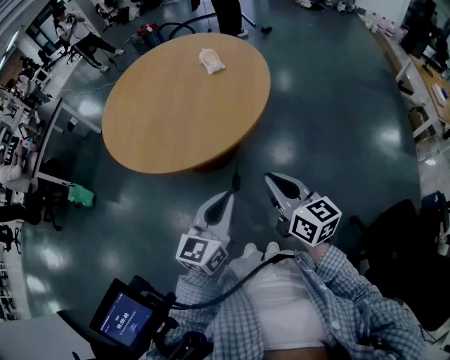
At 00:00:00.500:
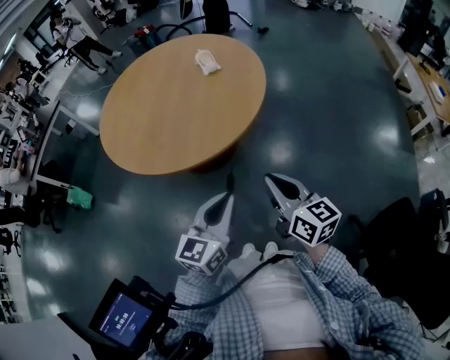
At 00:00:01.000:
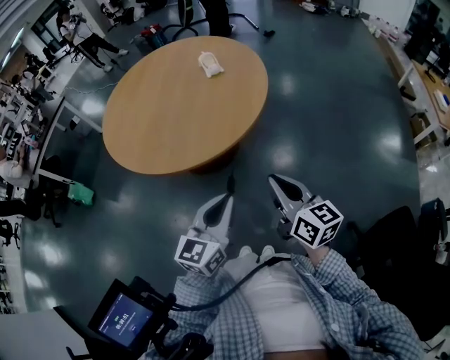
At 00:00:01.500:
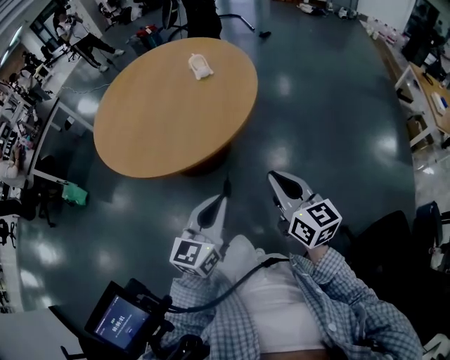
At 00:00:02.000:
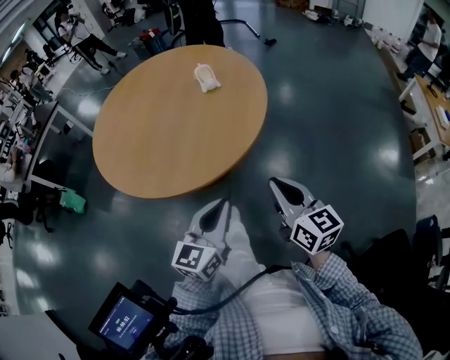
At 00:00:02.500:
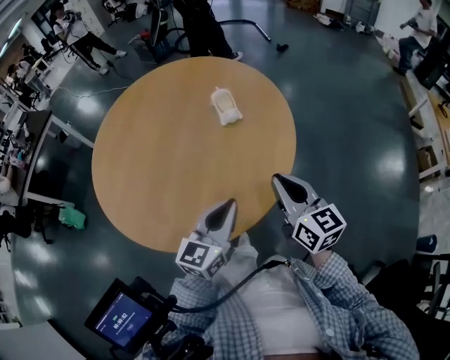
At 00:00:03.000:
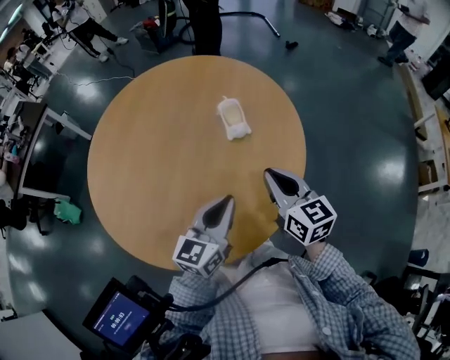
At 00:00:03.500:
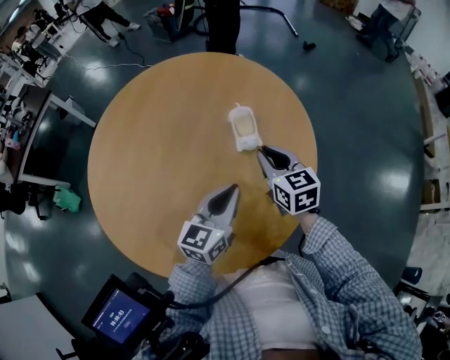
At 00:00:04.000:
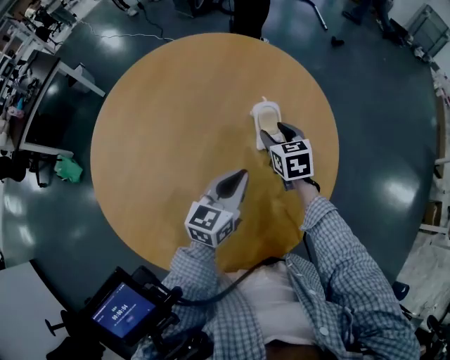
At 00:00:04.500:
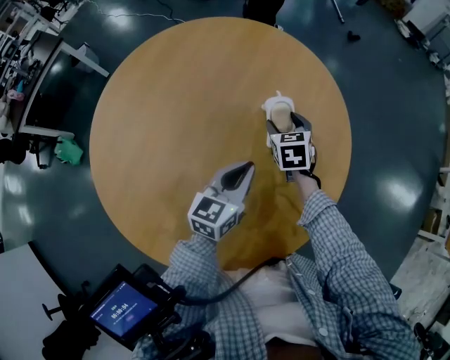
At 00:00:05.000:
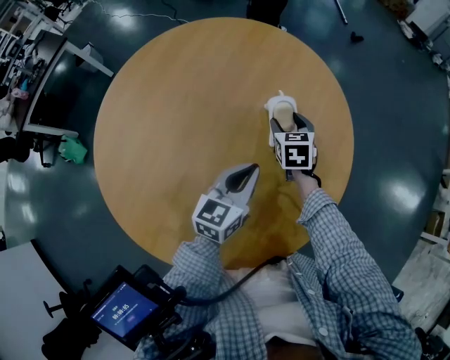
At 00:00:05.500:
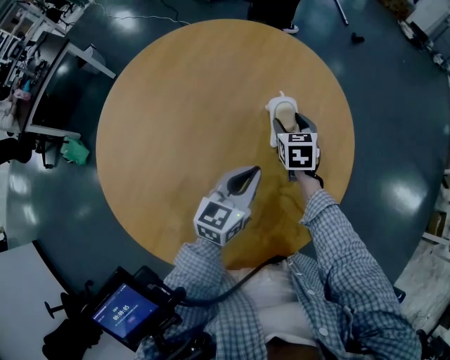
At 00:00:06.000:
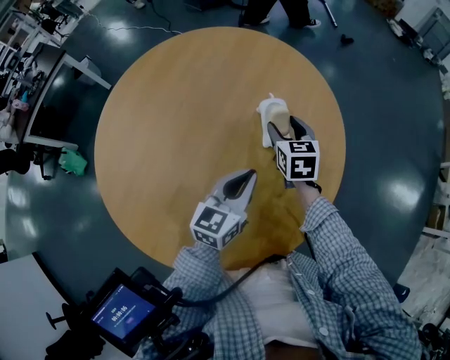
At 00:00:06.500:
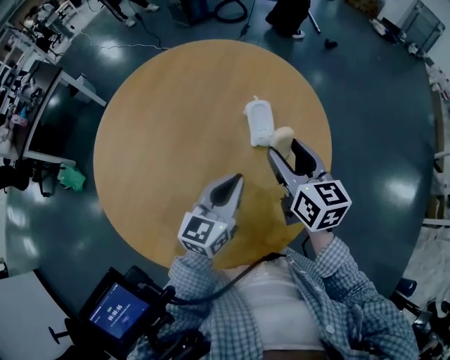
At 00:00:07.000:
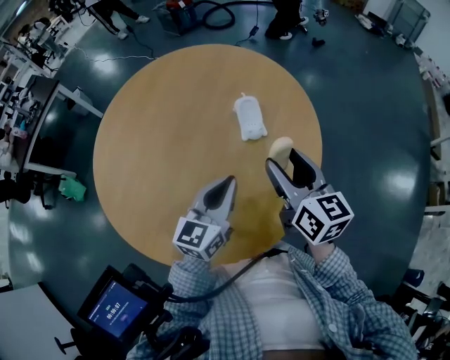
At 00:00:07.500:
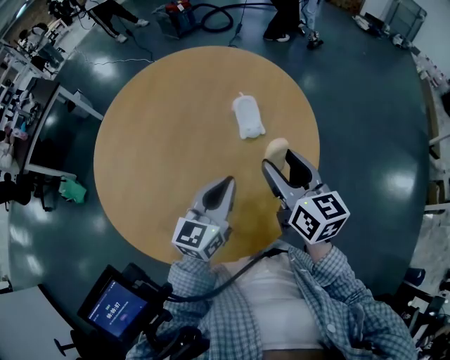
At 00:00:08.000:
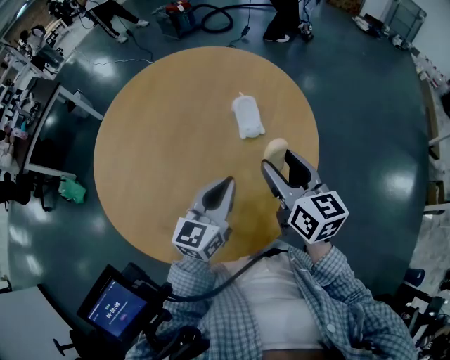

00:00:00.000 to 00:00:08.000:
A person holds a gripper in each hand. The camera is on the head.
00:00:00.000 to 00:00:02.000: The left gripper travels forward by some 10 cm. Meanwhile the right gripper shifts approximately 10 cm forward and to the right.
00:00:02.000 to 00:00:04.000: The pair of grippers is taken forward, about 50 cm. The right gripper points its fingers approximately 30 degrees further downward, and opens up.
00:00:04.000 to 00:00:06.000: The grippers move only a little.
00:00:06.000 to 00:00:08.000: The left gripper moves backward and upward, approximately 10 cm; the right gripper is displaced backward and upward by about 25 cm, and swivels roughly 30 degrees.

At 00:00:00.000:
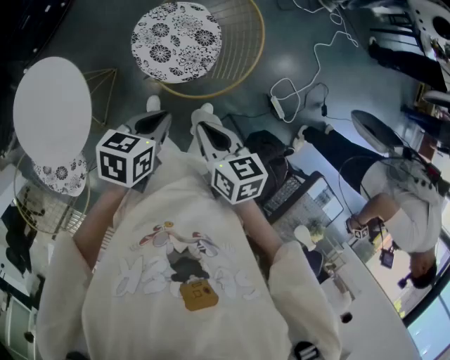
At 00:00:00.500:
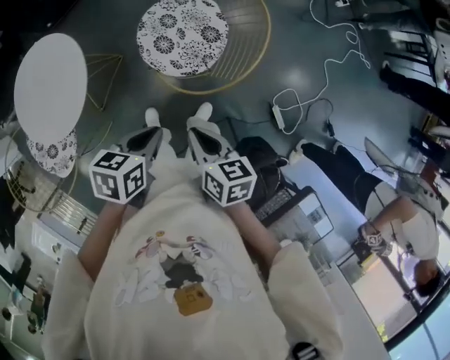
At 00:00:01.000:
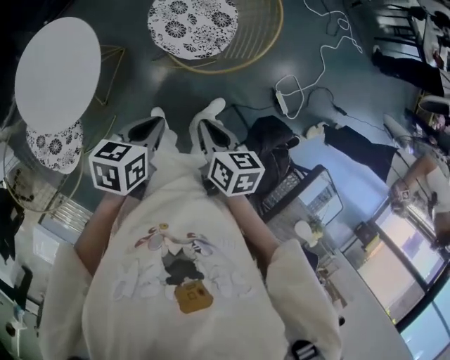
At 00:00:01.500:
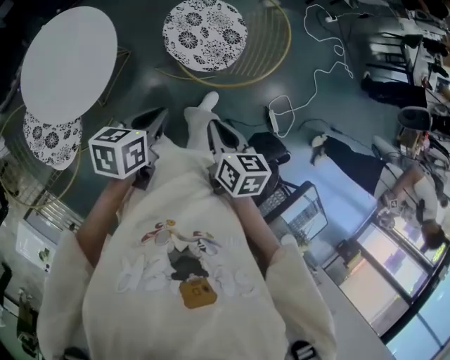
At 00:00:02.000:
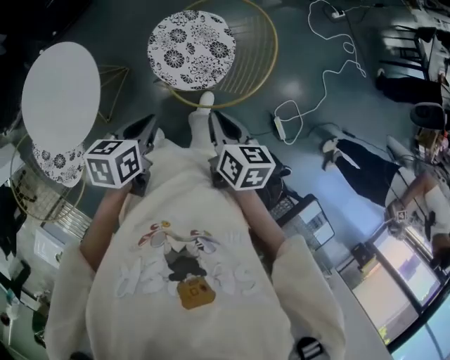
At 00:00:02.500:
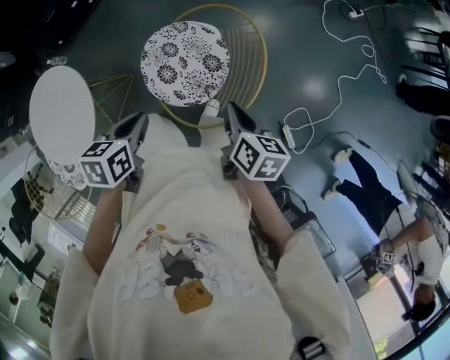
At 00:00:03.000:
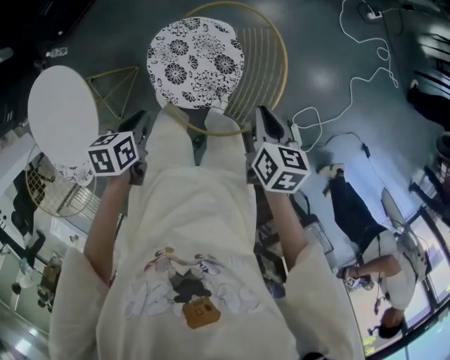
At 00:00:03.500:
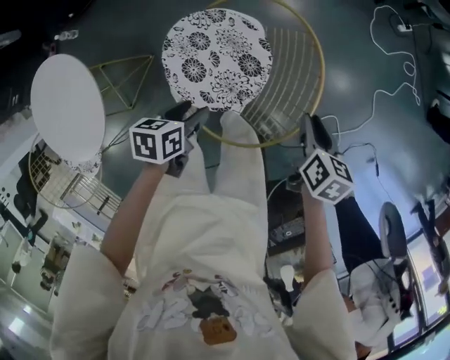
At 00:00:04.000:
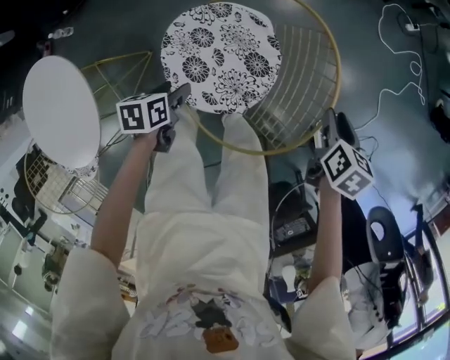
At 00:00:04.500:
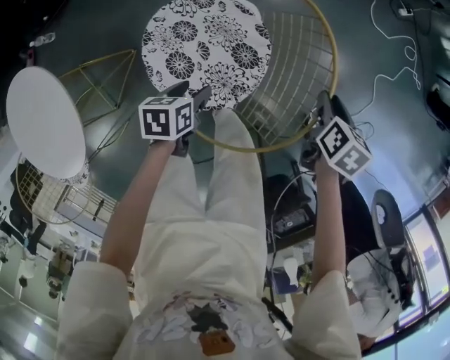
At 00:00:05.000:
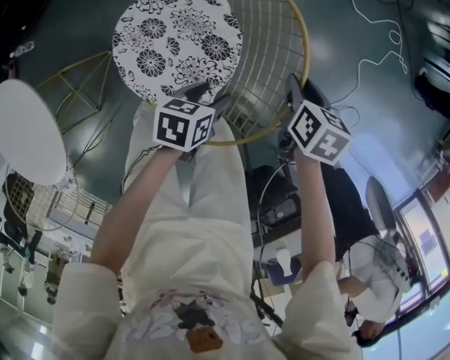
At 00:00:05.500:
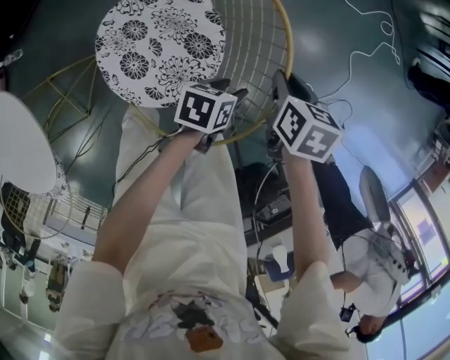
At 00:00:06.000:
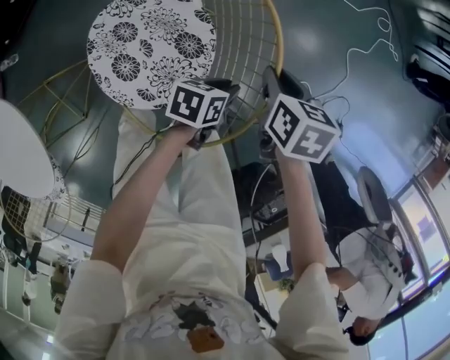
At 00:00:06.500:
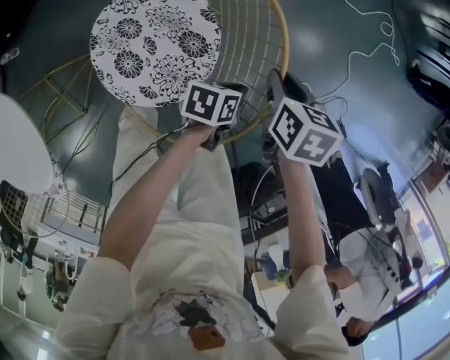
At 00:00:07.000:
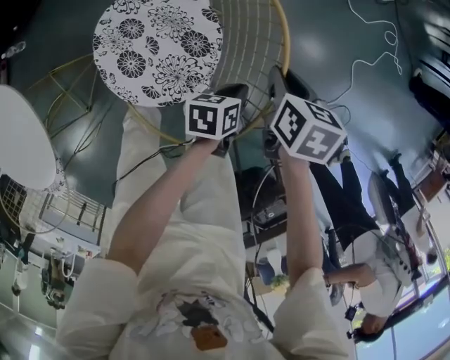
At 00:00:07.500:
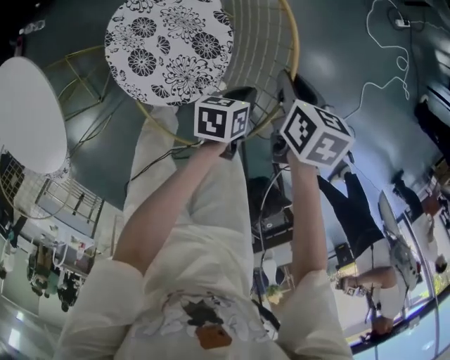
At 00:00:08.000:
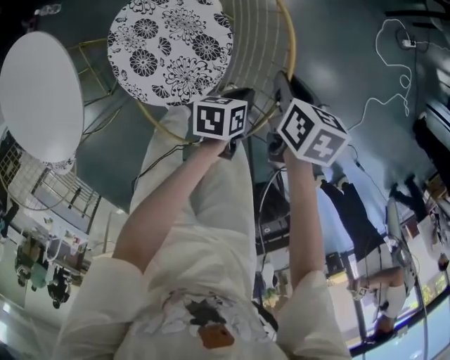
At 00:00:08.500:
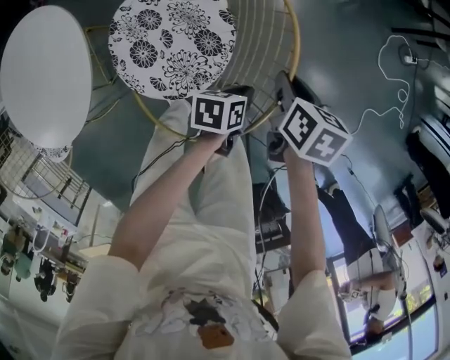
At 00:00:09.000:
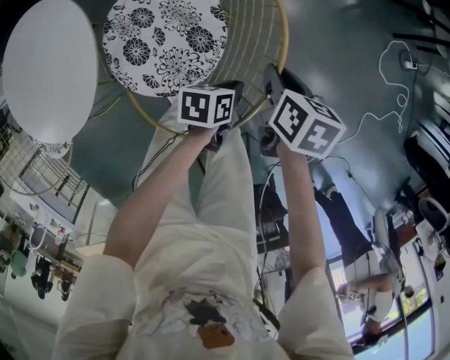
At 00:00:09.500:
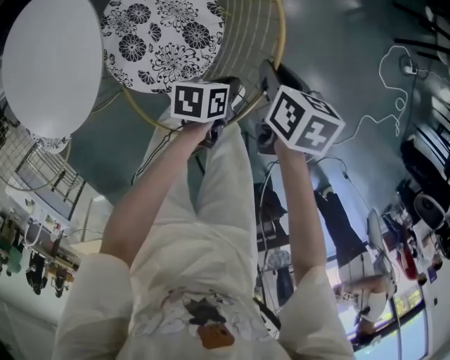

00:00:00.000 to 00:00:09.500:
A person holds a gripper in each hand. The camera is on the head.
00:00:00.000 to 00:00:02.000: The right gripper travels backward and back again, some 15 cm each way; the left gripper moves about 15 cm backward and comes back.
00:00:02.000 to 00:00:04.000: The left gripper goes about 35 cm downward and forward, and opens its fingers; the right gripper goes roughly 40 cm forward, downward and to the right, swivels about 20 degrees, and opens up.
00:00:04.000 to 00:00:05.500: The left gripper moves to the right and forward, approximately 30 cm, and swivels some 30 degrees.
00:00:05.500 to 00:00:07.500: The left gripper closes.
00:00:07.500 to 00:00:09.500: The grippers stay close to where they were, moving slightly.

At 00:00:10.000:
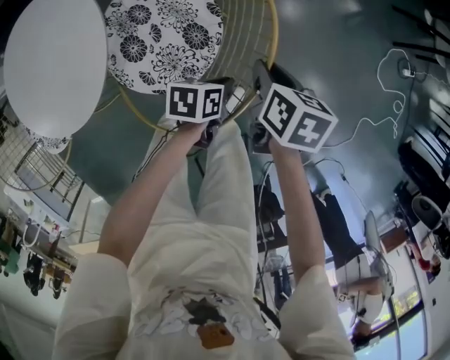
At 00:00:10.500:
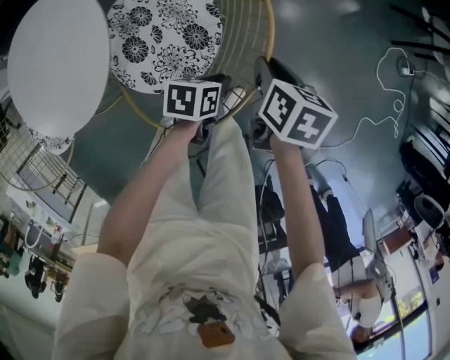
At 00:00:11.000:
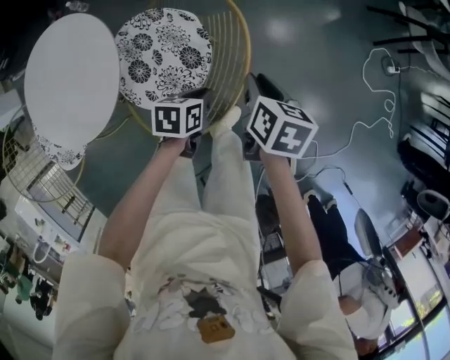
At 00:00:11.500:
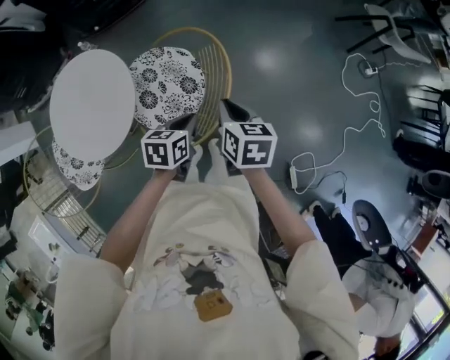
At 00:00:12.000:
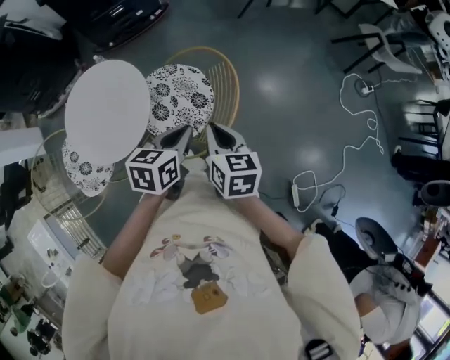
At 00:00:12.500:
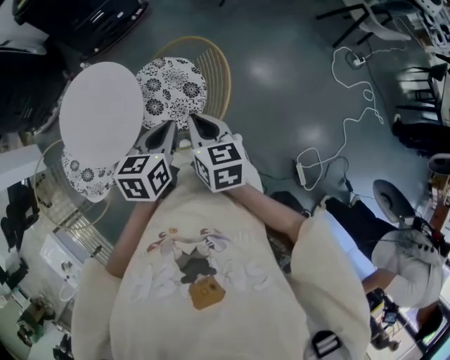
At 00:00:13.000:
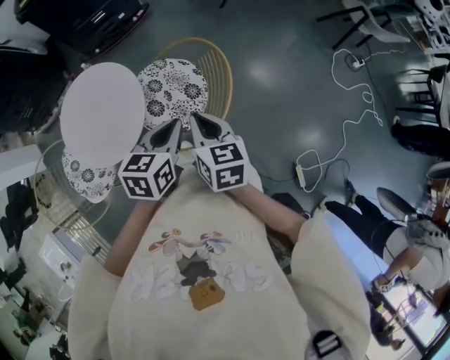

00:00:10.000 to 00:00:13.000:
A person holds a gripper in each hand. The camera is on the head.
00:00:10.000 to 00:00:11.500: The right gripper travels upward and backward by some 20 cm; the left gripper heads upward, covering some 25 cm, and rotates some 20 degrees.
00:00:11.500 to 00:00:13.000: The left gripper goes approximately 15 cm upward and backward. The right gripper travels backward, to the left and upward by about 15 cm.

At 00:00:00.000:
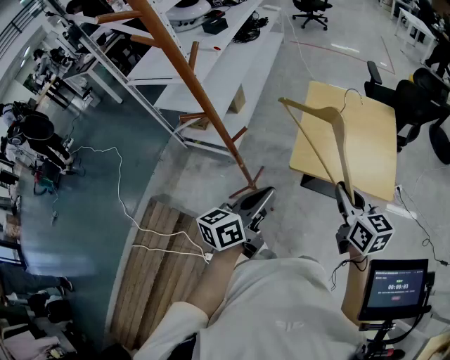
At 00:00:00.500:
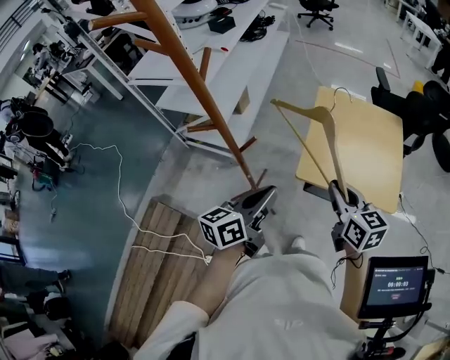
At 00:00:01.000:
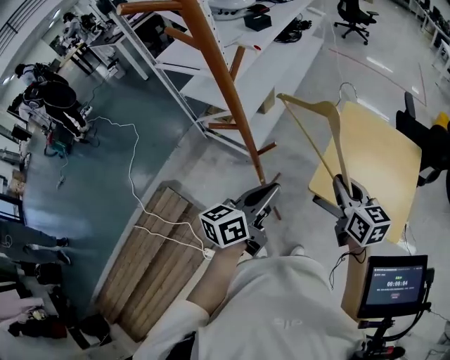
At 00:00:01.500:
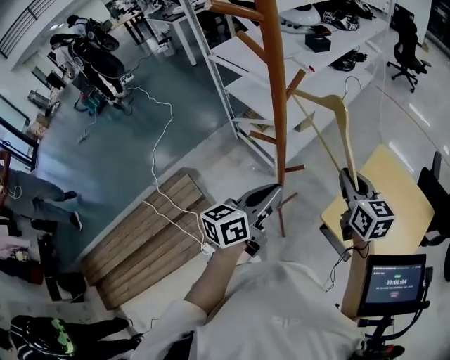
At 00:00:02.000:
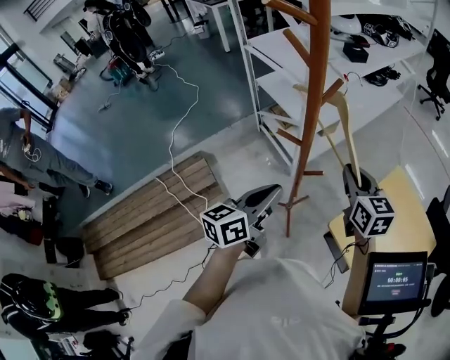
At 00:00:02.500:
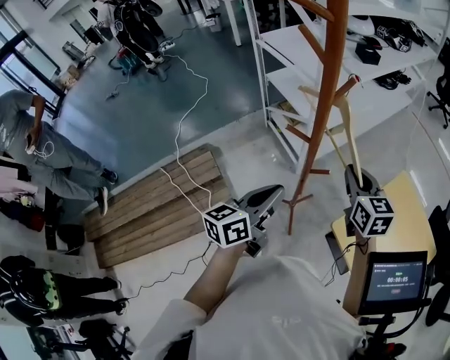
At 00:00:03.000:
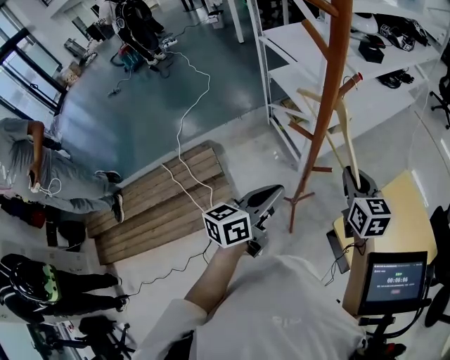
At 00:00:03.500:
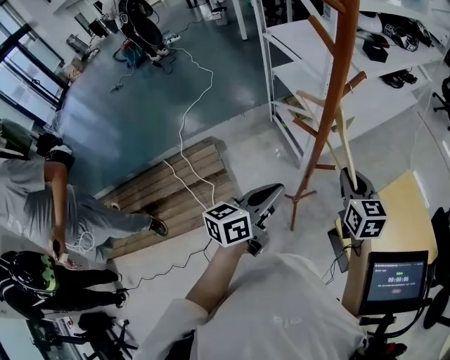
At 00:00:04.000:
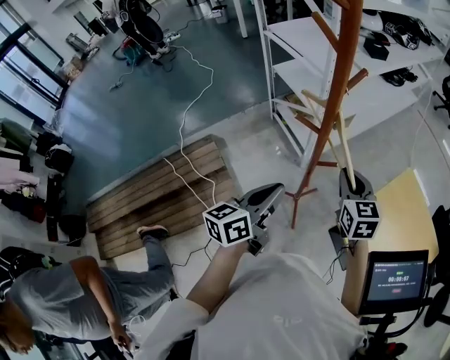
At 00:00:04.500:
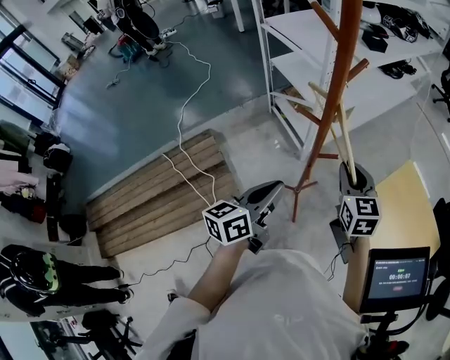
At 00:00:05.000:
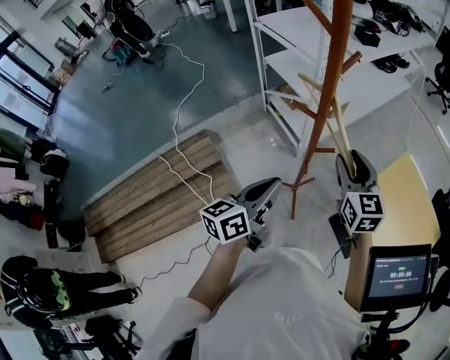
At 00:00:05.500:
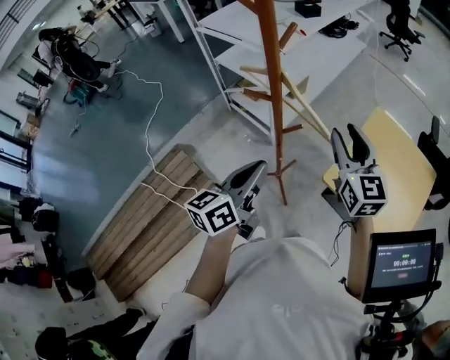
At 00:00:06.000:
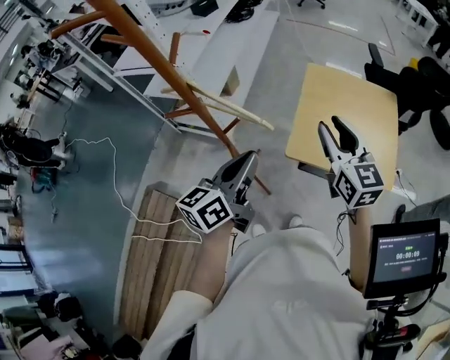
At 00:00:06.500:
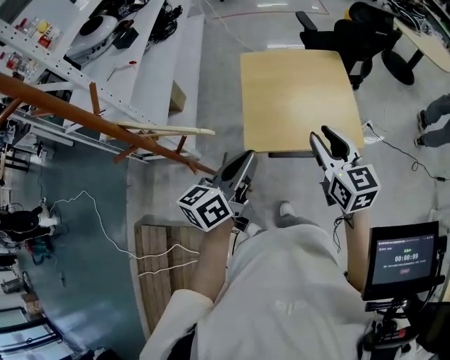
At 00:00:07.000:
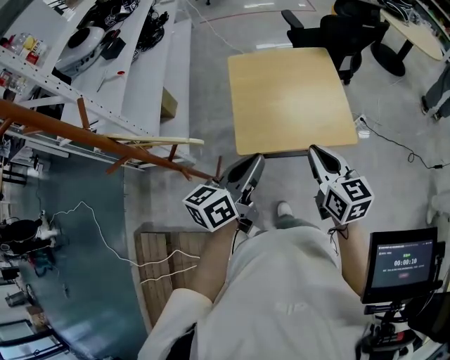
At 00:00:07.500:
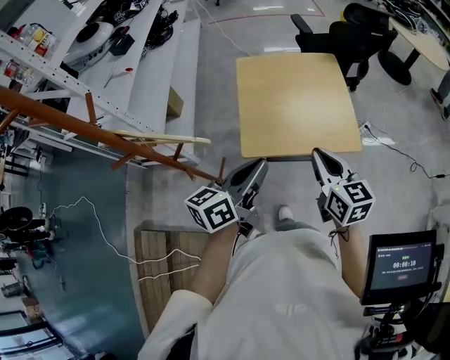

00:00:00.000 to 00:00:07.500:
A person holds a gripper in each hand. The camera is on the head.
00:00:00.000 to 00:00:02.000: The right gripper moves roughly 35 cm, and turns by about 40 degrees. Meanwhile the left gripper changes place by approximately 20 cm, and turns by some 40 degrees.
00:00:02.000 to 00:00:04.000: The right gripper moves roughly 5 cm.
00:00:04.000 to 00:00:05.500: The right gripper travels upward and to the right by some 10 cm, swivels some 20 degrees, and opens its fingers.
00:00:05.500 to 00:00:07.500: The left gripper shifts by about 30 cm, and rotates roughly 50 degrees. The right gripper ends up about 30 cm from where it was, swivels roughly 40 degrees, and closes its fingers.
